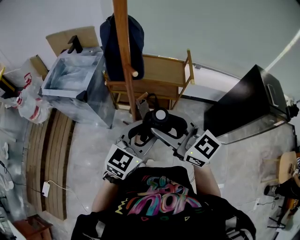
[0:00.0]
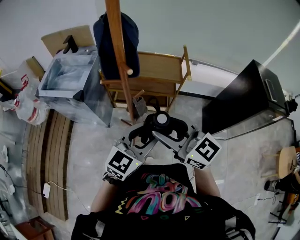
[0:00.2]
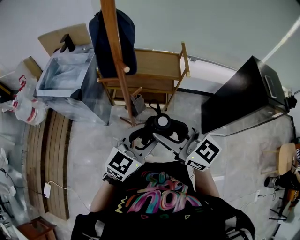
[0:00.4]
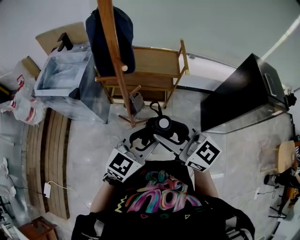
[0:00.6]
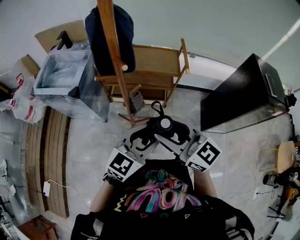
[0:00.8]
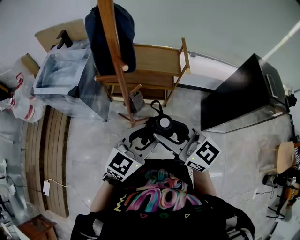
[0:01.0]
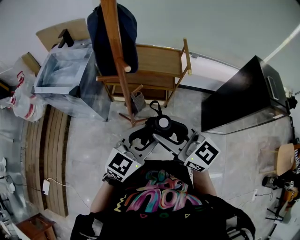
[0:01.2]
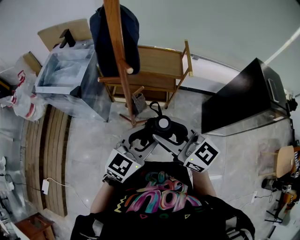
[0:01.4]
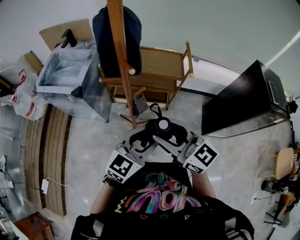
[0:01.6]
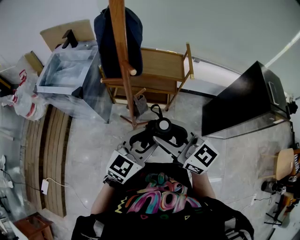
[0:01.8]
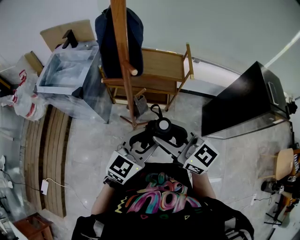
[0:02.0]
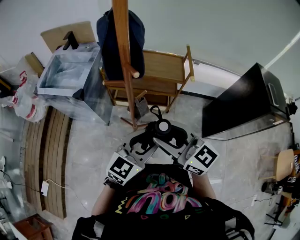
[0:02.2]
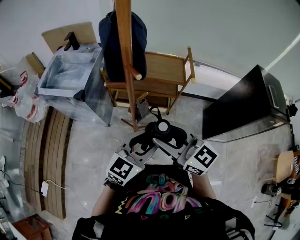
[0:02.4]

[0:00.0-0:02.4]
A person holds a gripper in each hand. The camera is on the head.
0.0 to 2.4 s: There are only small adjustments of the grippers.

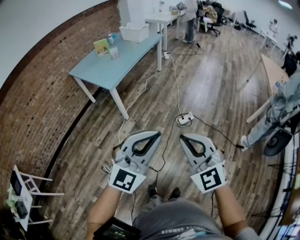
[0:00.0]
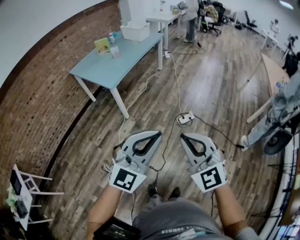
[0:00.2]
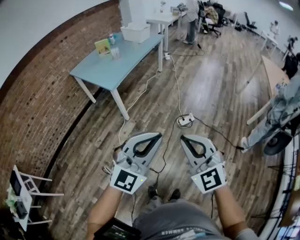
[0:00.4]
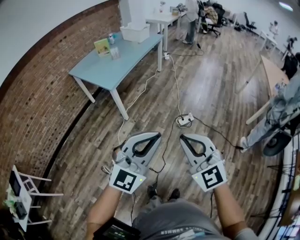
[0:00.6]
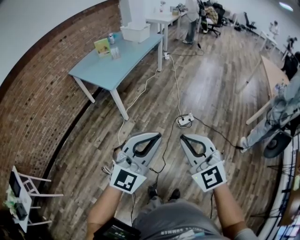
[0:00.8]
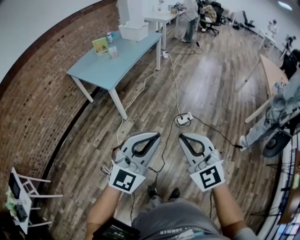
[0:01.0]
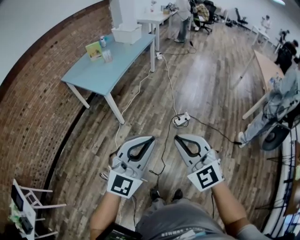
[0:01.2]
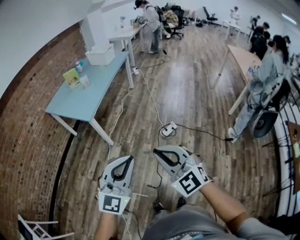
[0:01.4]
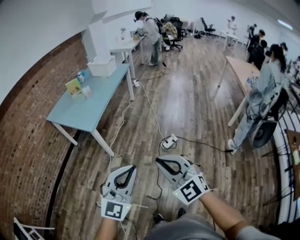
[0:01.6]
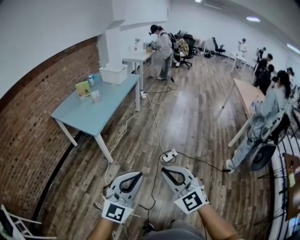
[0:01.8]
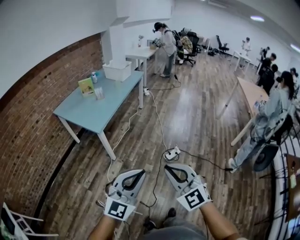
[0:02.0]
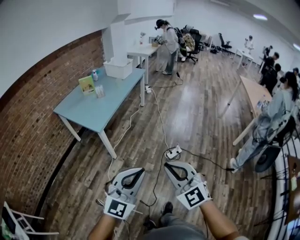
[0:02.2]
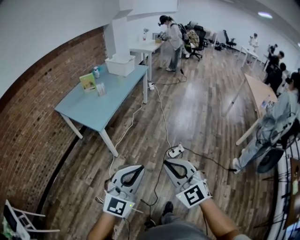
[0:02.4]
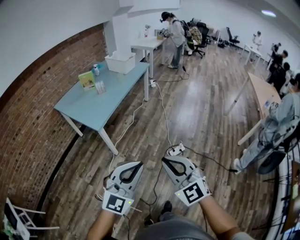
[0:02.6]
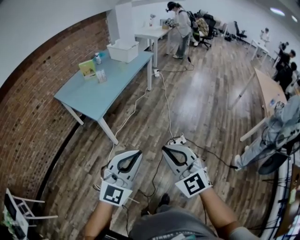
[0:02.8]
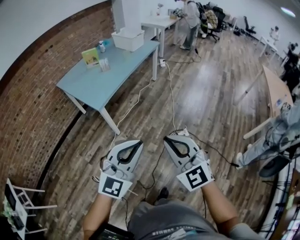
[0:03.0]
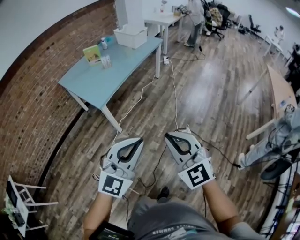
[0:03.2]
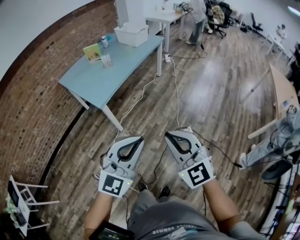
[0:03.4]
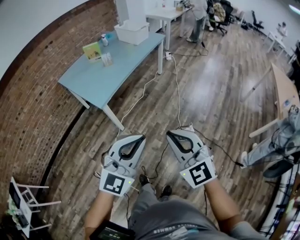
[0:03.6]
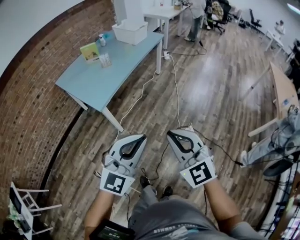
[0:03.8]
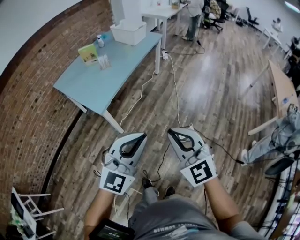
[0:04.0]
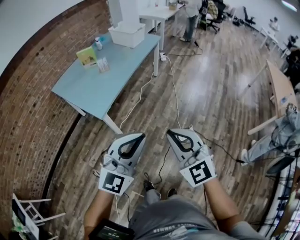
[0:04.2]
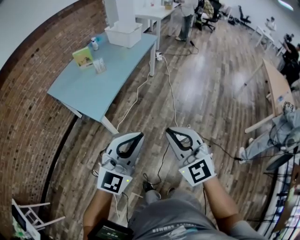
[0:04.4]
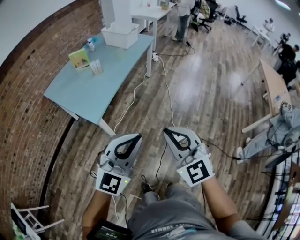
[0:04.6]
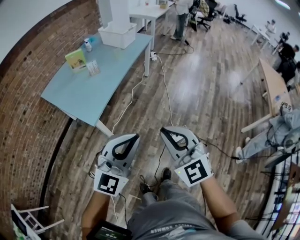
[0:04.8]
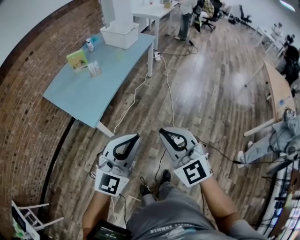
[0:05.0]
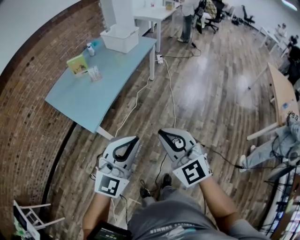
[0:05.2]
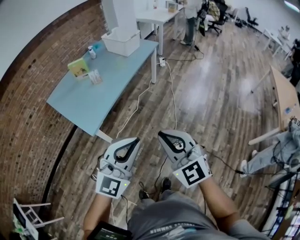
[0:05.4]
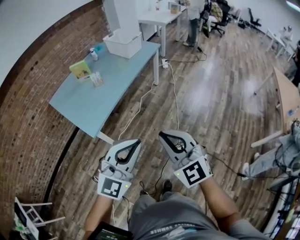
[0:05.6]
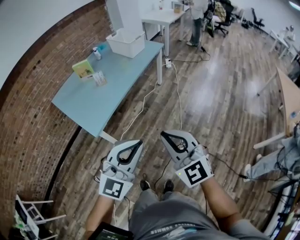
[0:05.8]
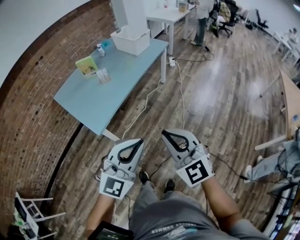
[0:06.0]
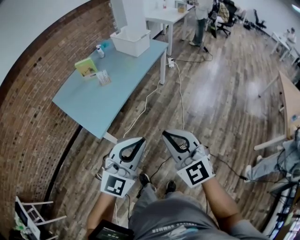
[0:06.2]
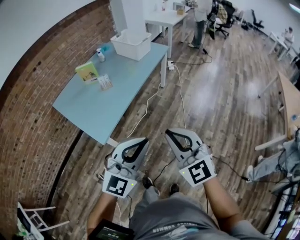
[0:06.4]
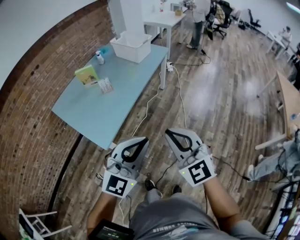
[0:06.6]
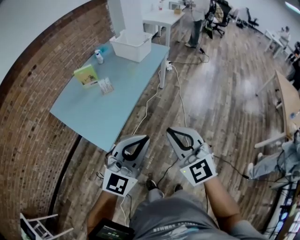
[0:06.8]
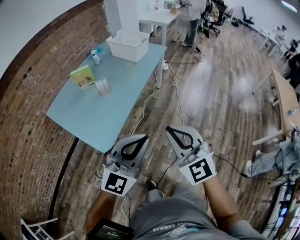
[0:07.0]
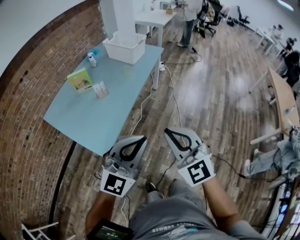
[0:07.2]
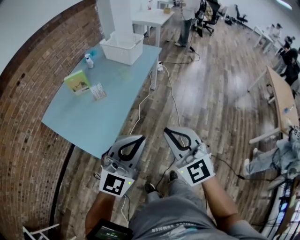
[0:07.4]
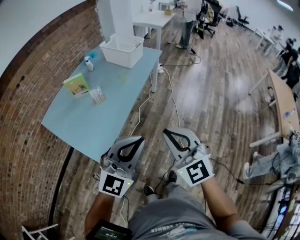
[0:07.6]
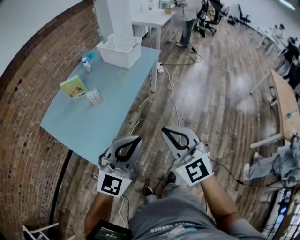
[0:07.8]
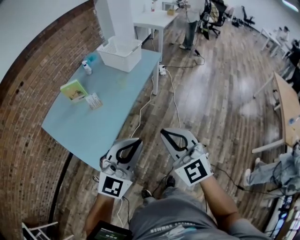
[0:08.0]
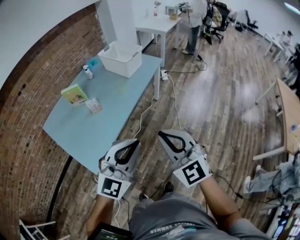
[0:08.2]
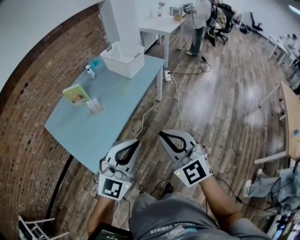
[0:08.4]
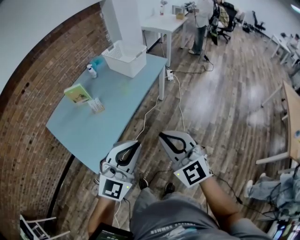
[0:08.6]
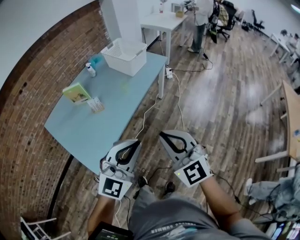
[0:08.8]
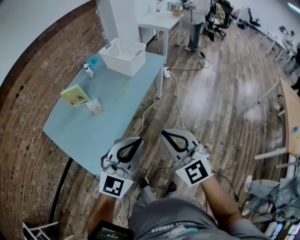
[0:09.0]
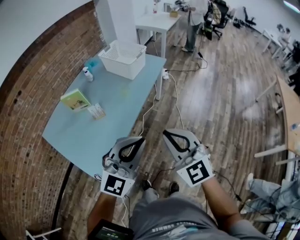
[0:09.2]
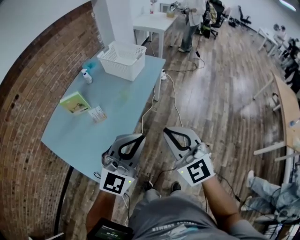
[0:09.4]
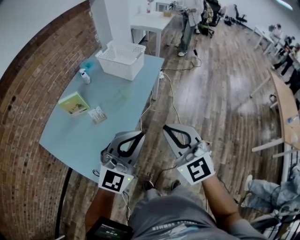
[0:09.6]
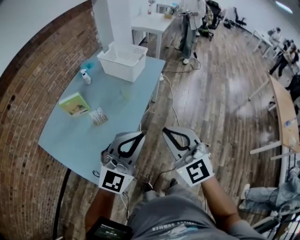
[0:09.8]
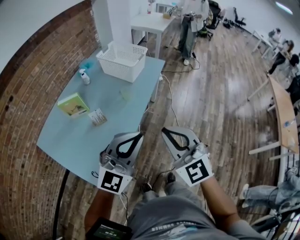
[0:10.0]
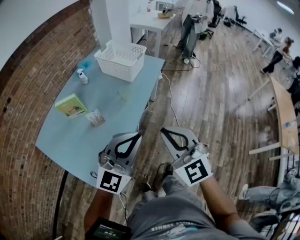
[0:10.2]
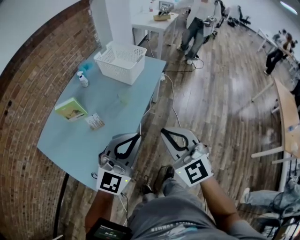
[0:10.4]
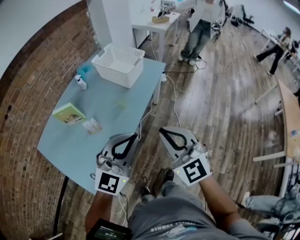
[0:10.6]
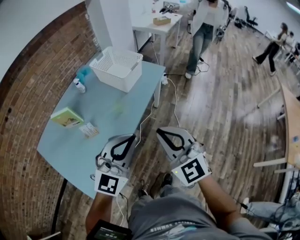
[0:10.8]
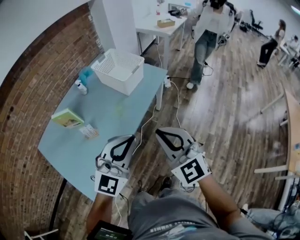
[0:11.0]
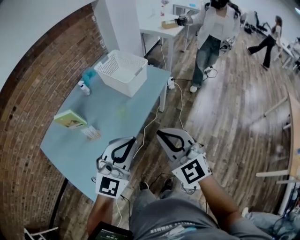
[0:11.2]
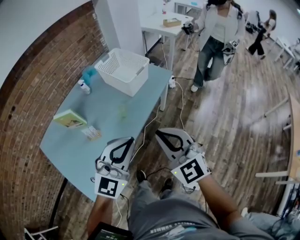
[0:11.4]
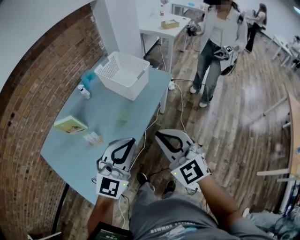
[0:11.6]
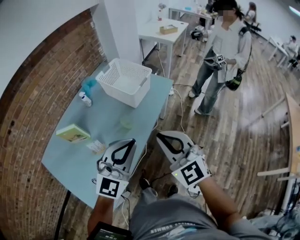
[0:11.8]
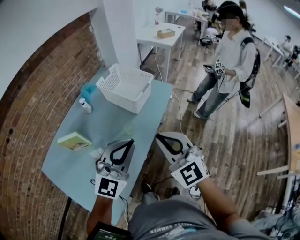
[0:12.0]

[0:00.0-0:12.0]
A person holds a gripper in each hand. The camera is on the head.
0.0 to 1.6 s: Both grippers move to the left and forward, some 10 cm.
1.6 to 3.0 s: Both grippers travel together forward, some 15 cm.
3.0 to 4.4 s: The grippers both shift forward and to the left by about 15 cm.
4.4 to 6.0 s: The left gripper moves forward and to the right, approximately 15 cm; the right gripper shifts roughly 15 cm forward.
6.0 to 7.6 s: The two grippers go about 20 cm forward and to the left.
7.6 to 9.0 s: The grippers both shift forward and to the right by roughly 15 cm.
9.0 to 10.4 s: The two grippers go approximately 15 cm forward and to the left.
10.4 to 12.0 s: The two grippers go roughly 20 cm forward.

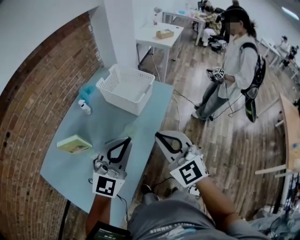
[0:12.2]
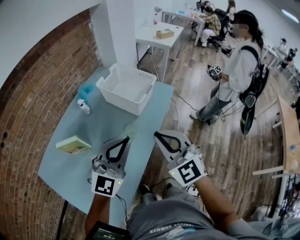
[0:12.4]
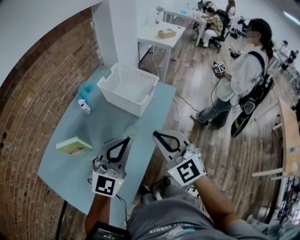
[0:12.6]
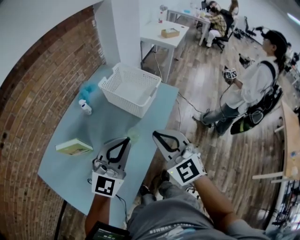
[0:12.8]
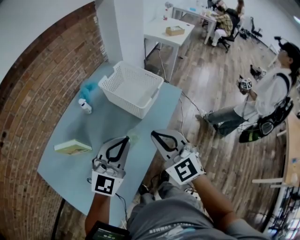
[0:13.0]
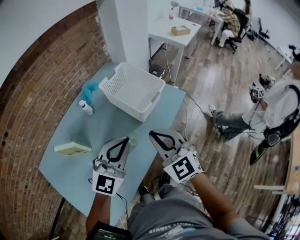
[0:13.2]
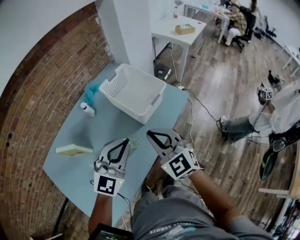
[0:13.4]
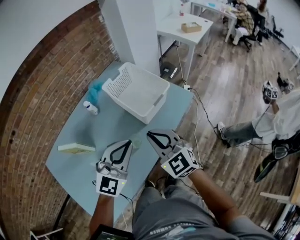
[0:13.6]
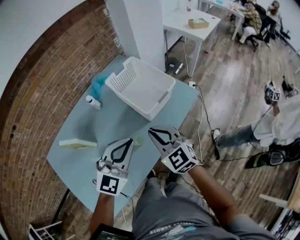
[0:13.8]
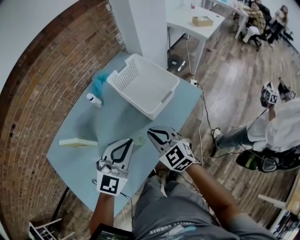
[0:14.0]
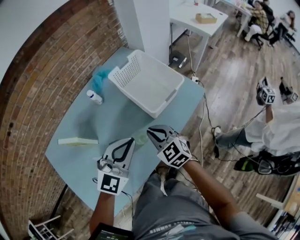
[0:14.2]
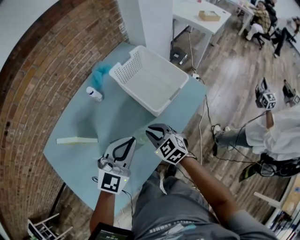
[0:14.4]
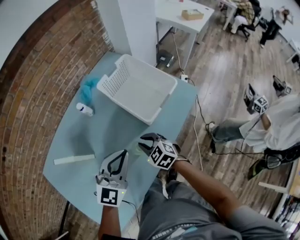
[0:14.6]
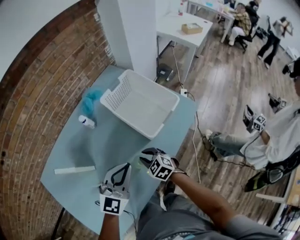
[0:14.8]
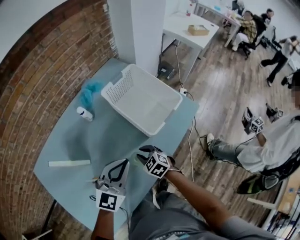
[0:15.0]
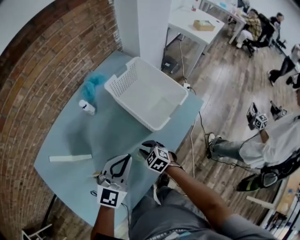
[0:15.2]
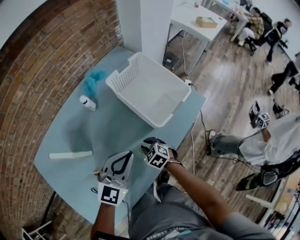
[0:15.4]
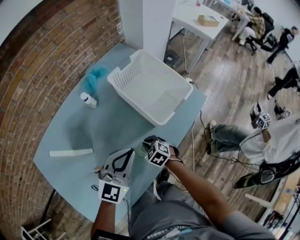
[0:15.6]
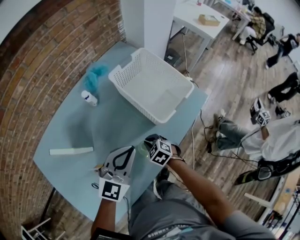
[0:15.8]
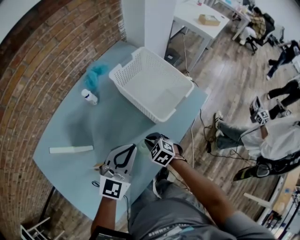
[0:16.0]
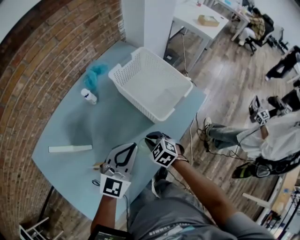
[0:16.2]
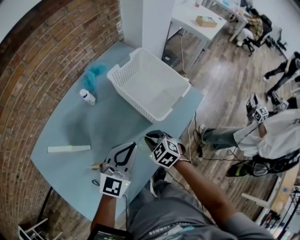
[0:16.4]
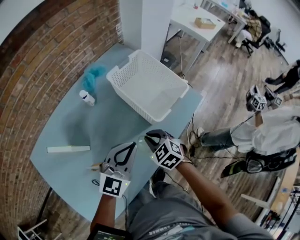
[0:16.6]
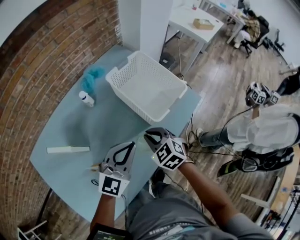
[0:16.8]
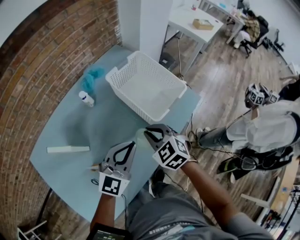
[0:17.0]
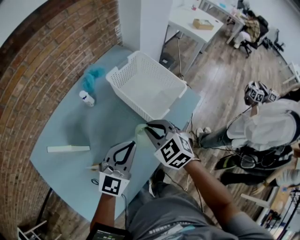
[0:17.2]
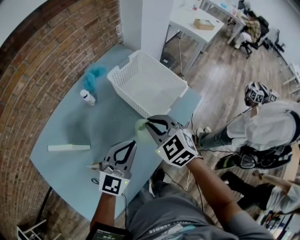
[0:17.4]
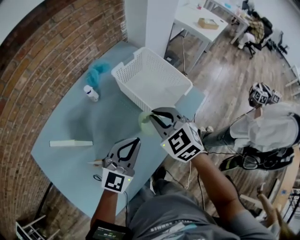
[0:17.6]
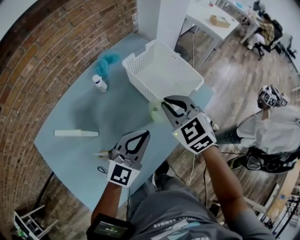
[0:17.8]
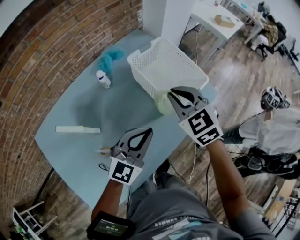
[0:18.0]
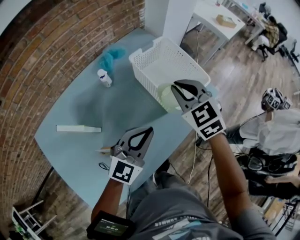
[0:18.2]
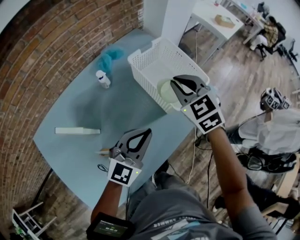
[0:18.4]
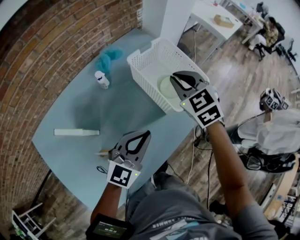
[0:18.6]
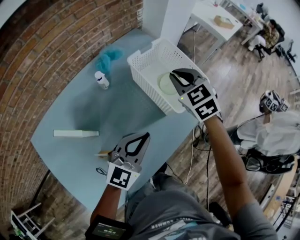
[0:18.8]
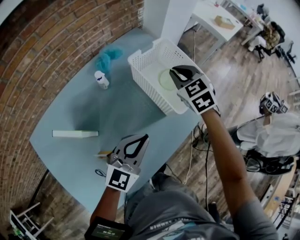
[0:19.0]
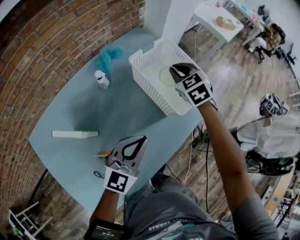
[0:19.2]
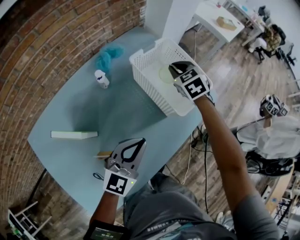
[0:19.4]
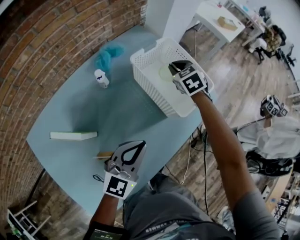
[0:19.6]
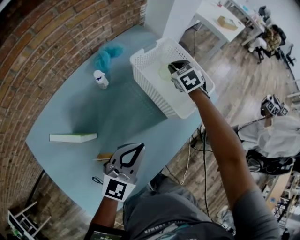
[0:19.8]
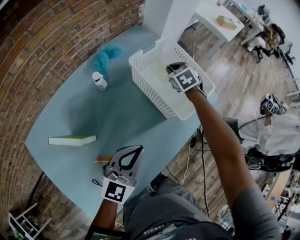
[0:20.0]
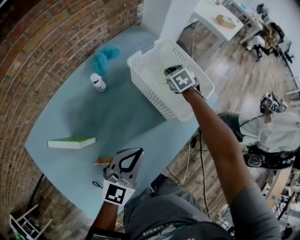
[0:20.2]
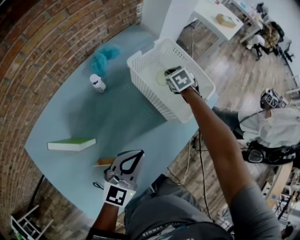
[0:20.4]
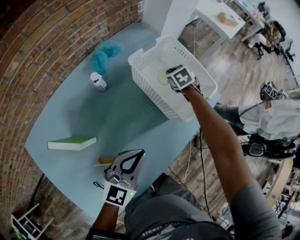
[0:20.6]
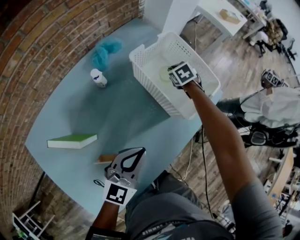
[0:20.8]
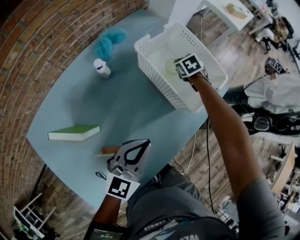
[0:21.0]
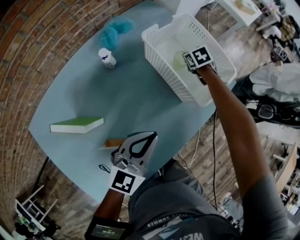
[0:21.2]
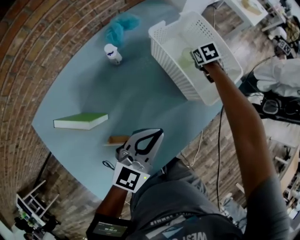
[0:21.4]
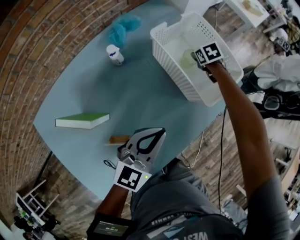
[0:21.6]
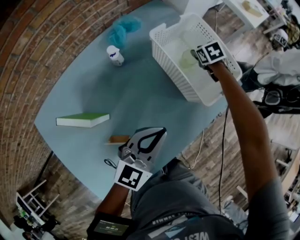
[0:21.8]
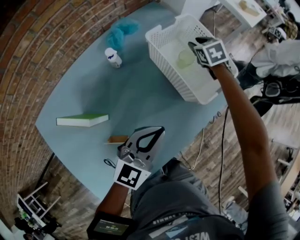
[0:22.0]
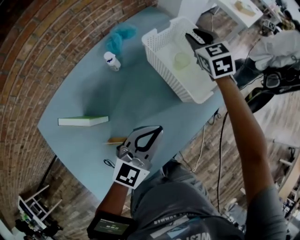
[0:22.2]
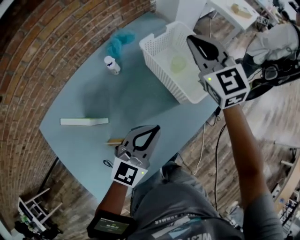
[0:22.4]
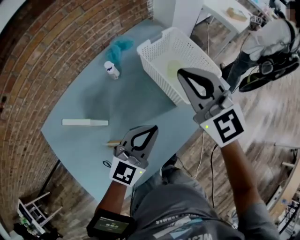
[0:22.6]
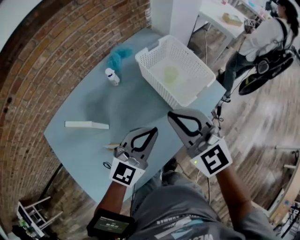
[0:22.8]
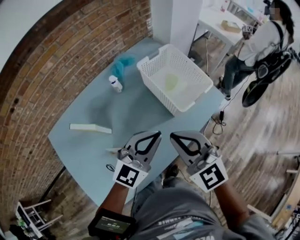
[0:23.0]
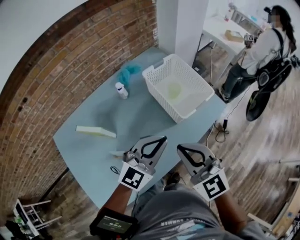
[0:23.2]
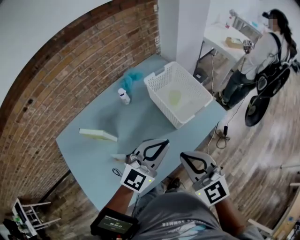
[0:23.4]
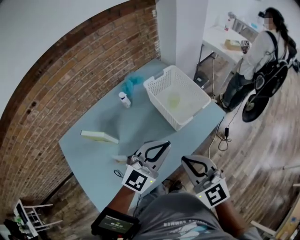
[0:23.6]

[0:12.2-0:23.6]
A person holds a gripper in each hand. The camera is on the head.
12.2 to 13.6 s: Both grippers travel together forward and downward, roughly 15 cm.
13.6 to 15.0 s: The left gripper is displaced downward, forward and to the left by roughly 10 cm. Meanwhile the right gripper travels downward by some 25 cm, and tilts its fingers some 30 degrees downward.
15.0 to 16.4 s: The grippers make only small movements.
16.4 to 17.8 s: The right gripper travels upward by about 20 cm.
17.8 to 19.4 s: The left gripper moves about 5 cm, while the right gripper is displaced forward and downward by about 20 cm.
19.4 to 20.8 s: The right gripper goes some 15 cm downward, and turns by some 20 degrees.
20.8 to 22.2 s: The right gripper moves upward, approximately 20 cm, points its fingers some 30 degrees further upward, and opens up.
22.2 to 23.6 s: The right gripper heads backward, covering roughly 40 cm, rotates roughly 30 degrees, and closes. Meanwhile the left gripper travels upward and to the right by some 15 cm.
